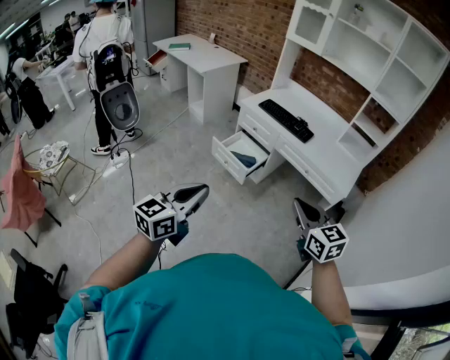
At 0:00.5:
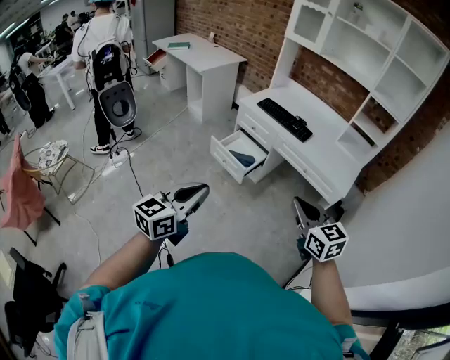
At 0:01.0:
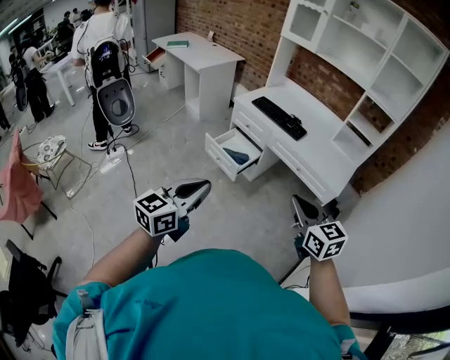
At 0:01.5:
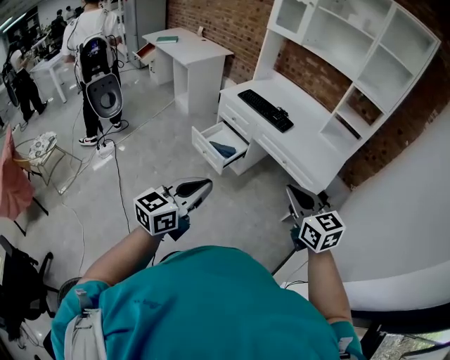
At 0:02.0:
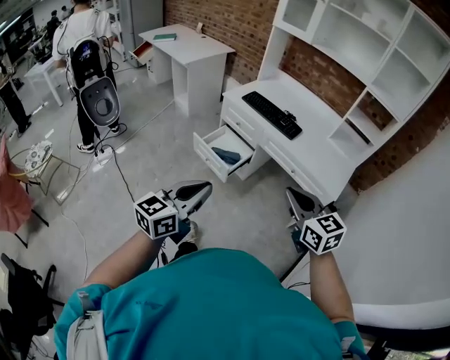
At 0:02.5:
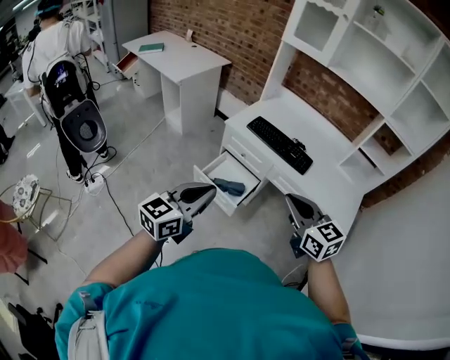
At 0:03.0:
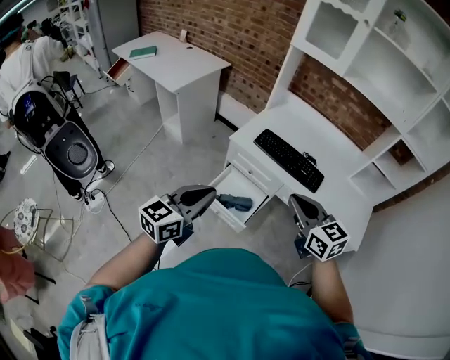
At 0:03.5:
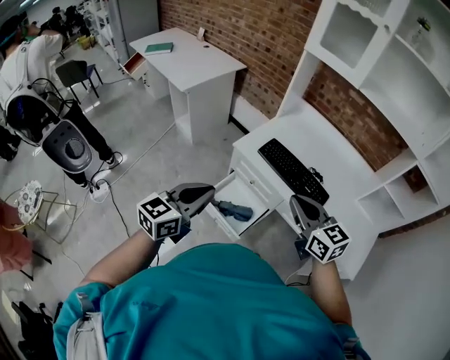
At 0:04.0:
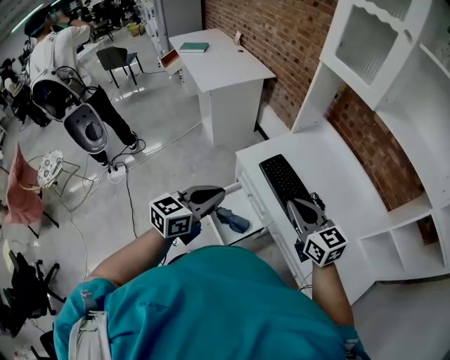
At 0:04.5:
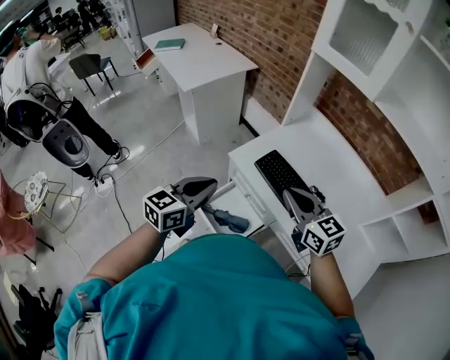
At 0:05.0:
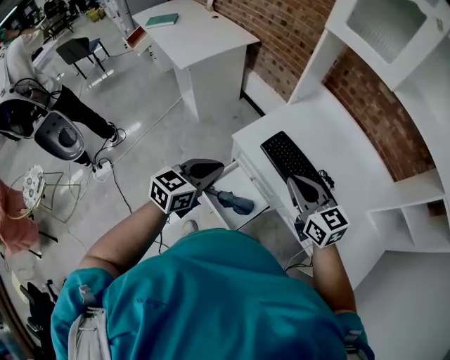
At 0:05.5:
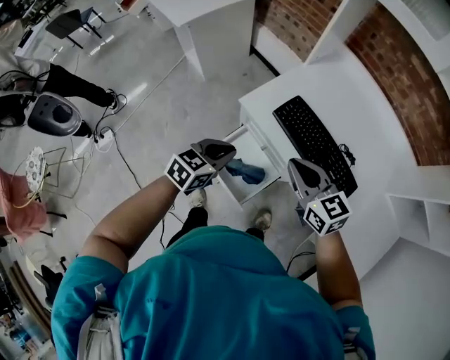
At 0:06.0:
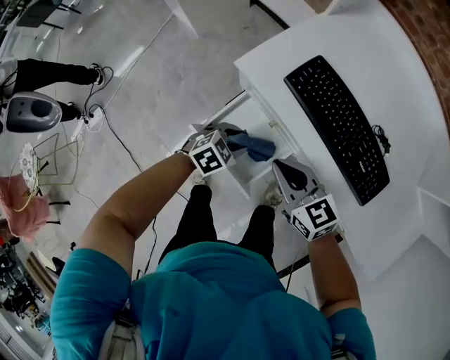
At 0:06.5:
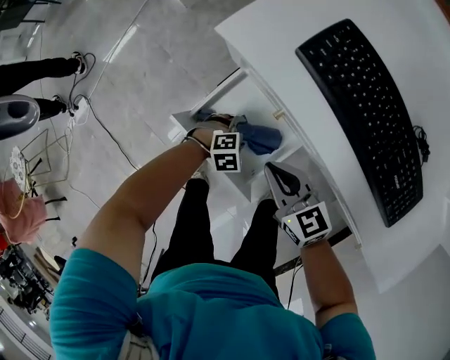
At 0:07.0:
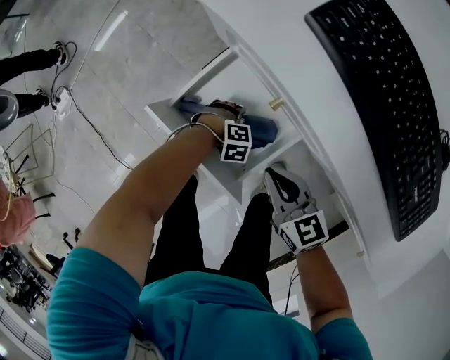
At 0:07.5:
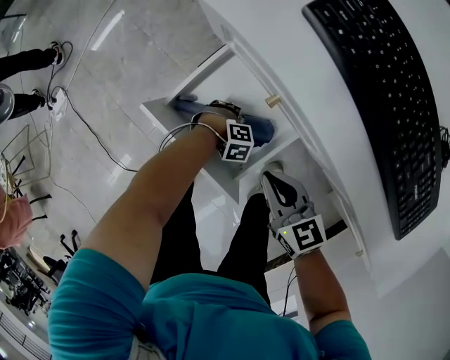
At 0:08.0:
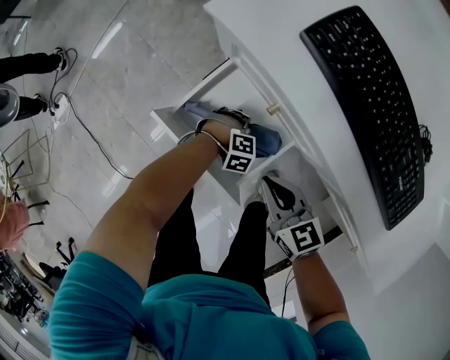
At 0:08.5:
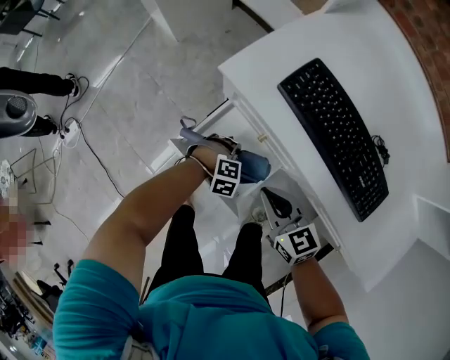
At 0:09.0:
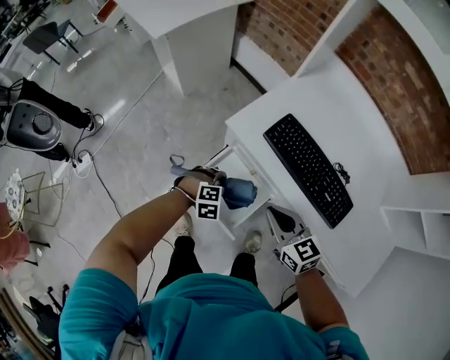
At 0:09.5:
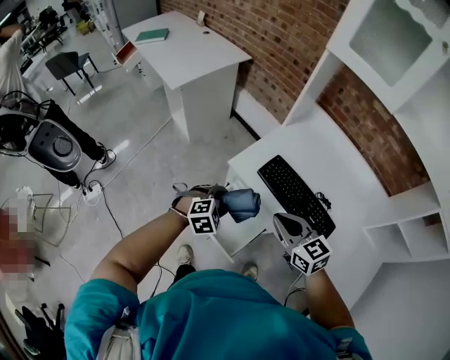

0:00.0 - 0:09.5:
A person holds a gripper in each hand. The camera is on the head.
0:00.0 - 0:02.0: The left gripper moves to the right and forward, approximately 15 cm. The right gripper heads forward and to the right, covering about 10 cm.
0:02.0 - 0:04.0: Both grippers are carried forward, some 50 cm.
0:04.0 - 0:05.5: The left gripper moves downward and forward, some 20 cm, and turns by roughly 30 degrees; the right gripper is displaced downward, to the left and forward by roughly 15 cm.
0:05.5 - 0:07.5: Both grippers travel together downward, roughly 50 cm. The left gripper points its fingers about 50 degrees further downward, and opens its fingers.
0:07.5 - 0:09.5: The grippers both shift upward by roughly 50 cm. The right gripper changes its angle by about 20 degrees; the left gripper angles its fingers upward, by some 30 degrees.

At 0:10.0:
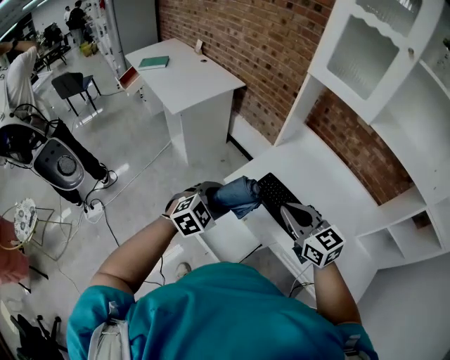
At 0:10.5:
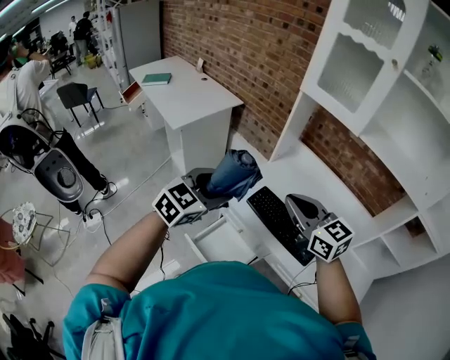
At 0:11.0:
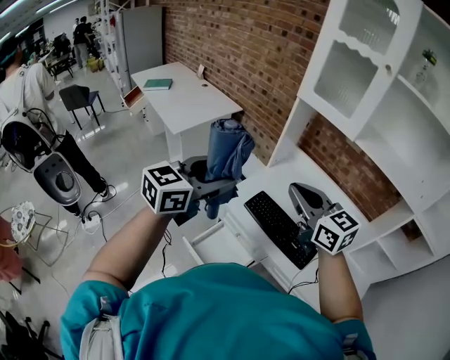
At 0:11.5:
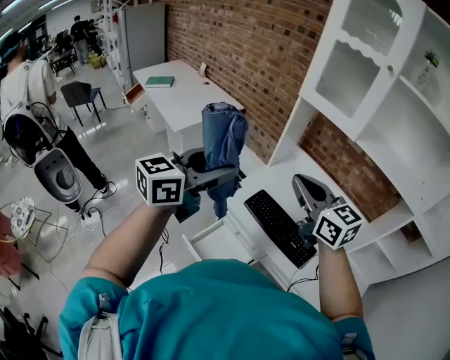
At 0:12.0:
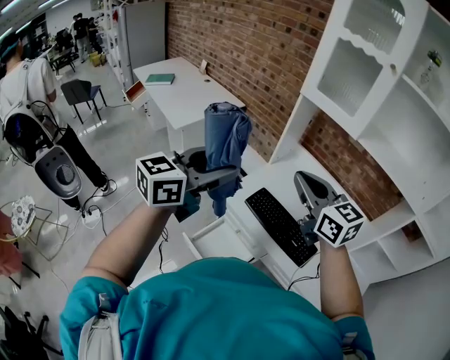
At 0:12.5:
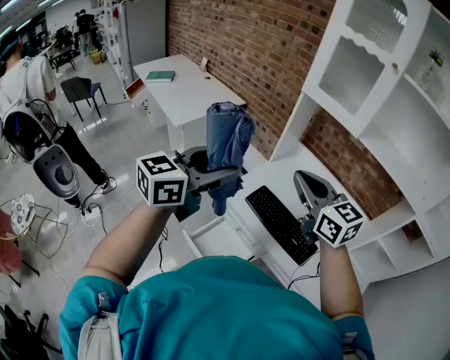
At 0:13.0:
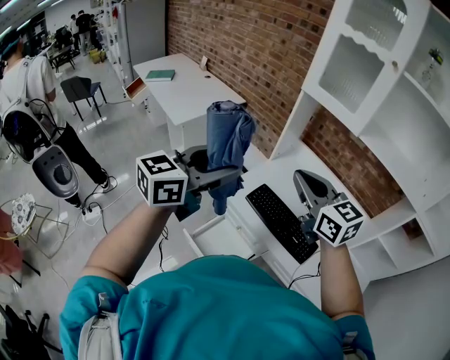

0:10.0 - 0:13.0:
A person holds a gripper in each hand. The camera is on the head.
0:10.0 - 0:11.5: The right gripper travels upward by approximately 15 cm. Meanwhile the left gripper goes some 25 cm upward, and angles its fingers upward, by roughly 40 degrees.
0:11.5 - 0:13.0: Both grippers stay put.

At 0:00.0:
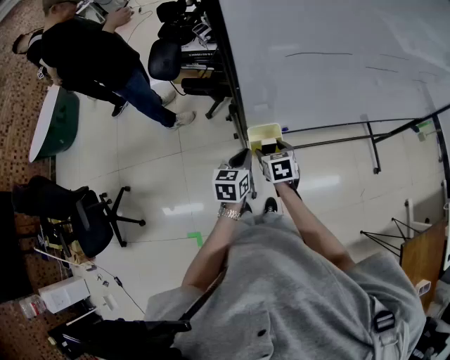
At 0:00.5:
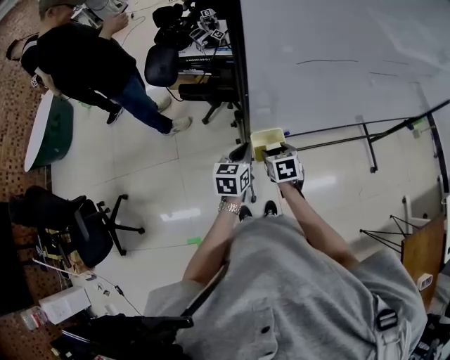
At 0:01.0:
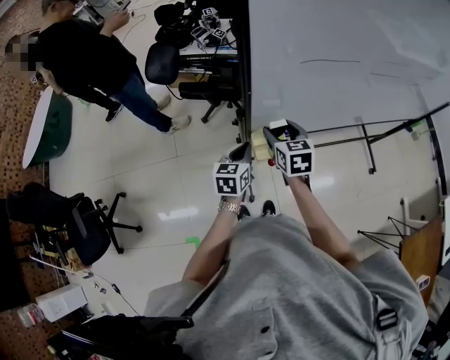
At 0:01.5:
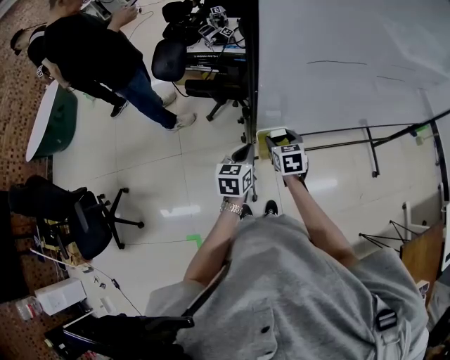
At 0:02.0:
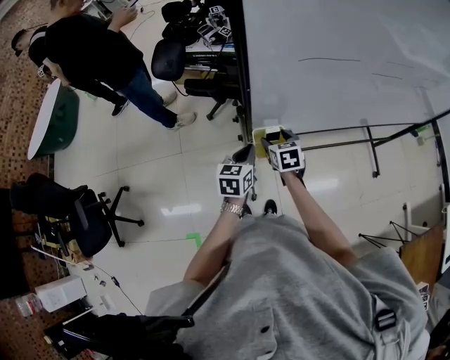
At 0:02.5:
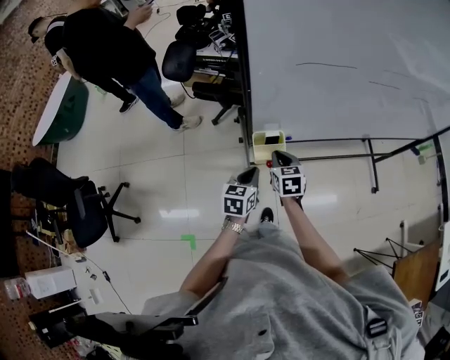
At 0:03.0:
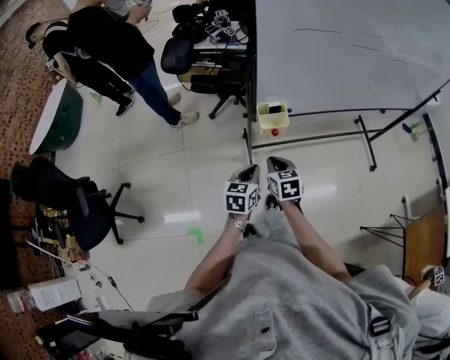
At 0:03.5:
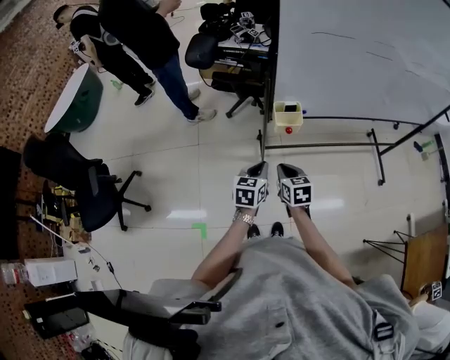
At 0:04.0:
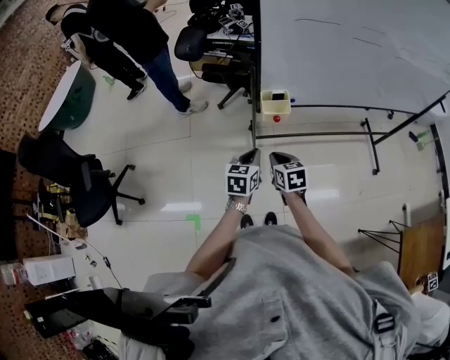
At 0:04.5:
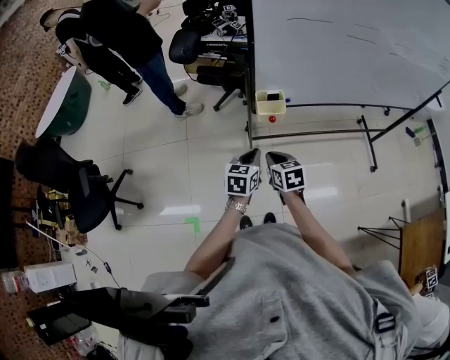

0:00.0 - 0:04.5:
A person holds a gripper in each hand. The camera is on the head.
0:00.0 - 0:02.0: The right gripper travels upward and back again, about 15 cm each way.
0:02.0 - 0:04.5: Both grippers travel together backward, approximately 25 cm. The right gripper closes up.

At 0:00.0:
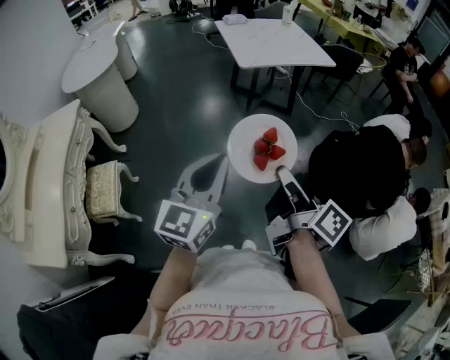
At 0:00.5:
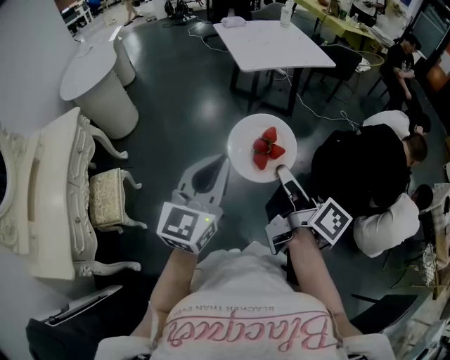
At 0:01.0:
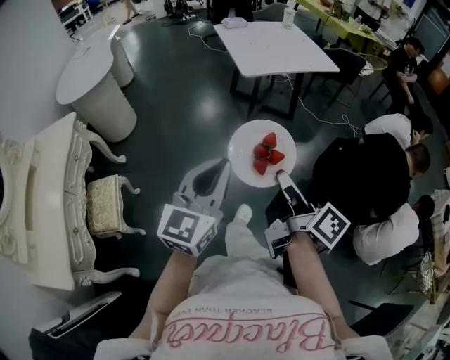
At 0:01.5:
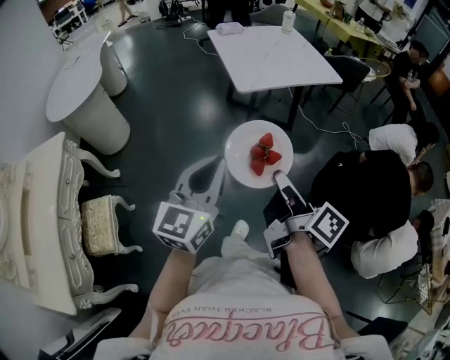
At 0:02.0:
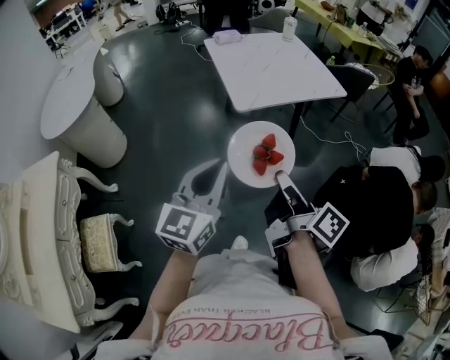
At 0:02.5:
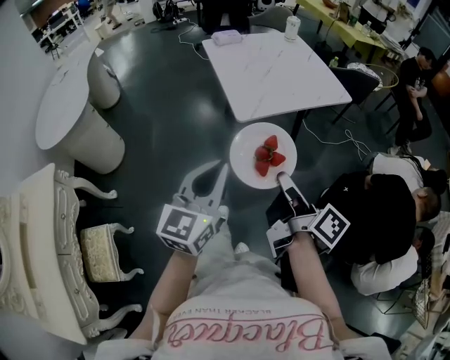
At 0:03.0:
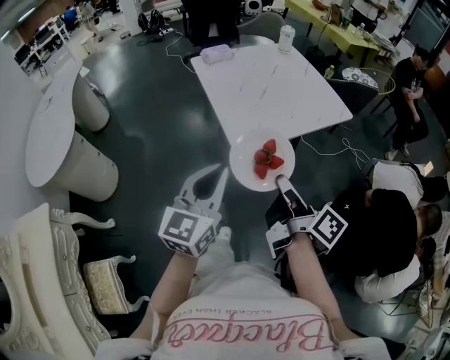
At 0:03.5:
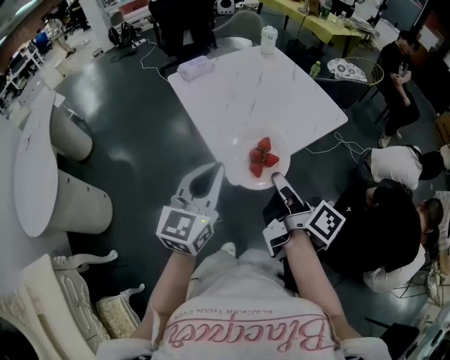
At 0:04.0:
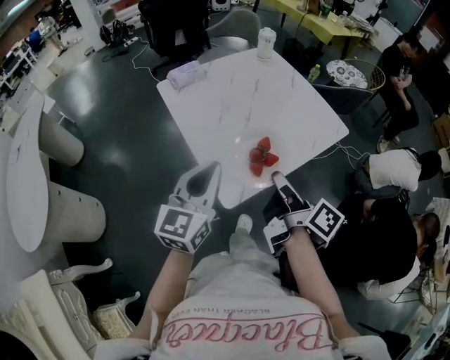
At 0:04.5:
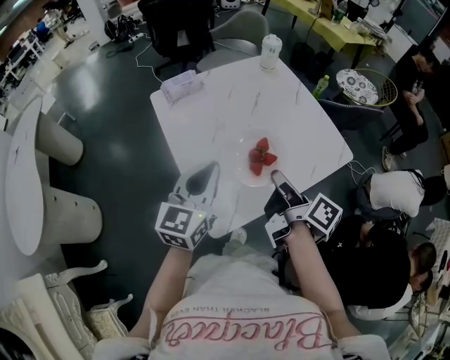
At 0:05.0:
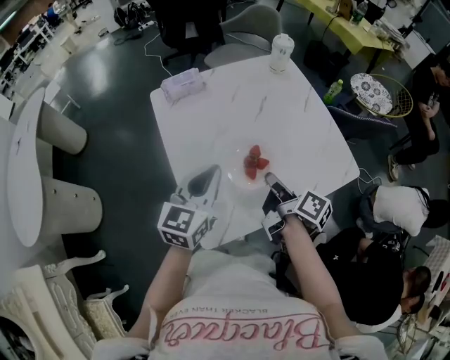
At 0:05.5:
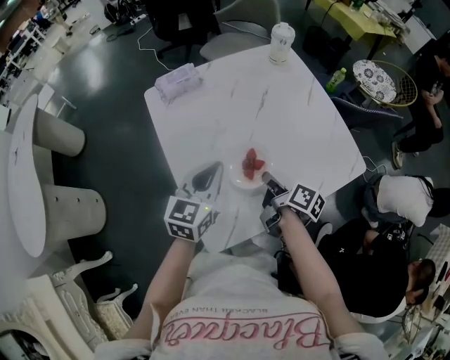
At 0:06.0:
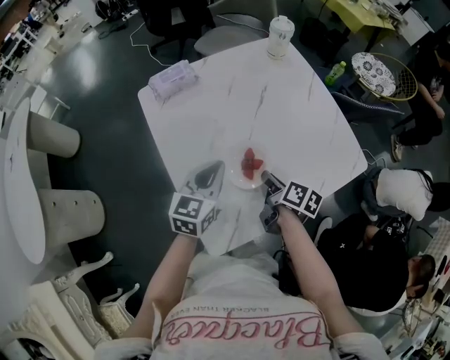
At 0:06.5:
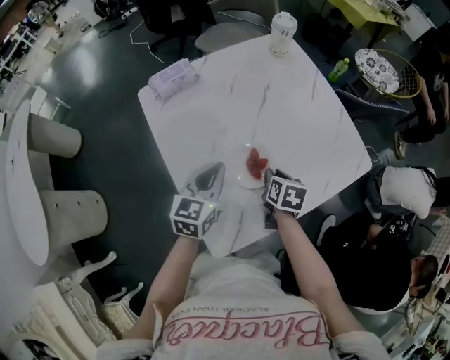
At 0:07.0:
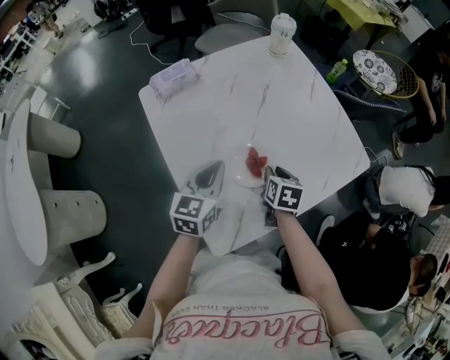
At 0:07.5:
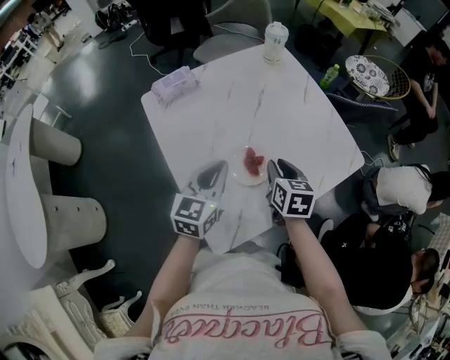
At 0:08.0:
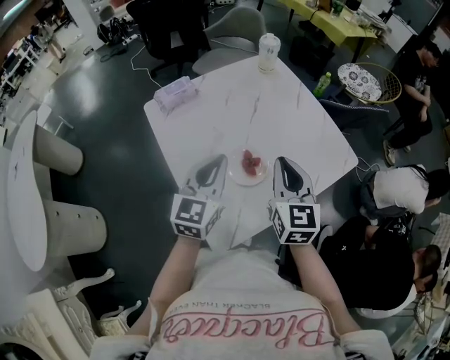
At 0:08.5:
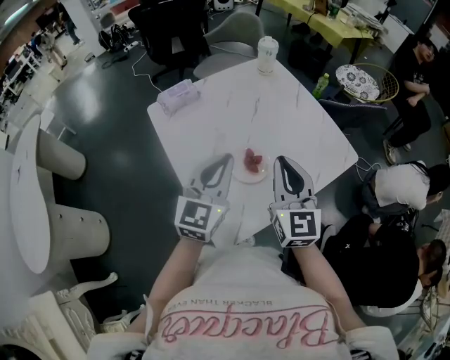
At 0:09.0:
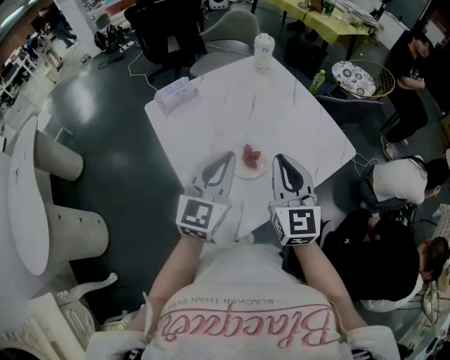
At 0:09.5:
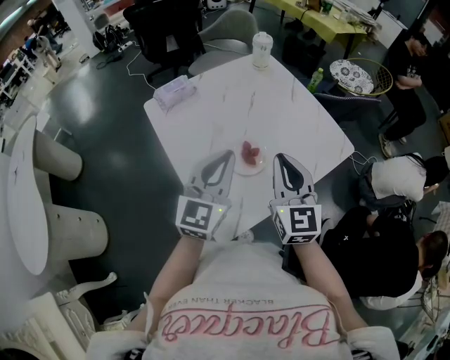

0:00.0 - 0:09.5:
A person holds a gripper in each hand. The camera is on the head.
0:00.0 - 0:02.0: The two grippers go about 35 cm forward.
0:02.0 - 0:04.0: The pair of grippers is taken forward, approximately 50 cm.
0:04.0 - 0:05.5: Both grippers move forward and downward, some 30 cm. The right gripper changes its angle by about 20 degrees.
0:05.5 - 0:07.5: The right gripper twists roughly 50 degrees counterclockwise, seen from behind.
0:07.5 - 0:09.5: The left gripper travels upward and backward by some 10 cm, and rotates some 20 degrees. Meanwhile the right gripper travels upward and backward by about 20 cm, and angles its fingers upward, by about 30 degrees.
